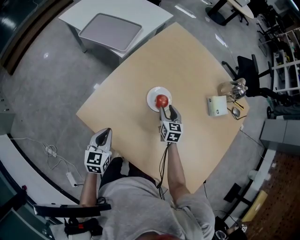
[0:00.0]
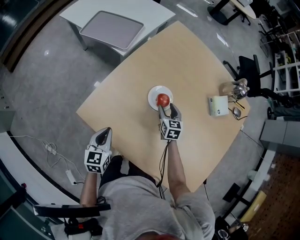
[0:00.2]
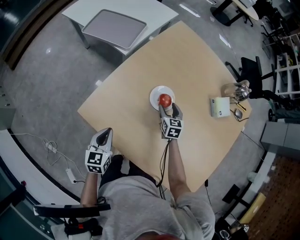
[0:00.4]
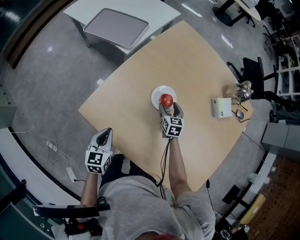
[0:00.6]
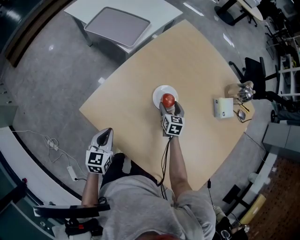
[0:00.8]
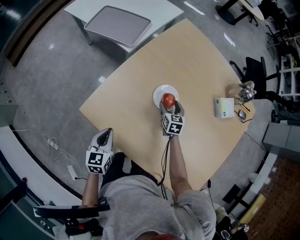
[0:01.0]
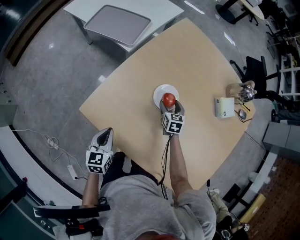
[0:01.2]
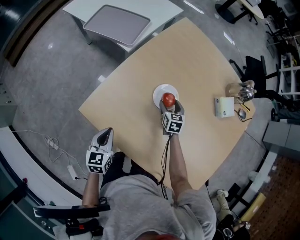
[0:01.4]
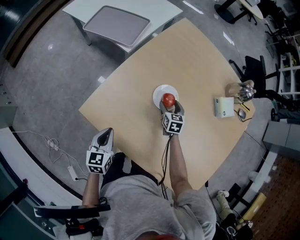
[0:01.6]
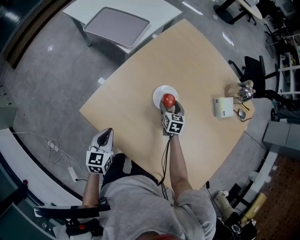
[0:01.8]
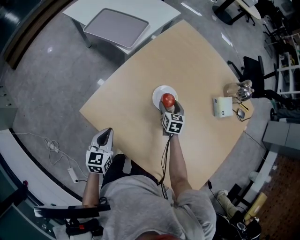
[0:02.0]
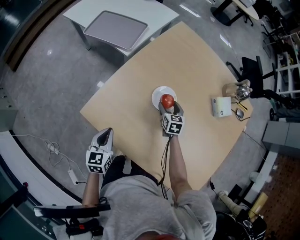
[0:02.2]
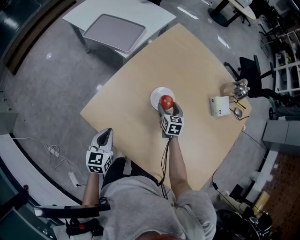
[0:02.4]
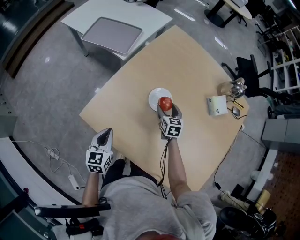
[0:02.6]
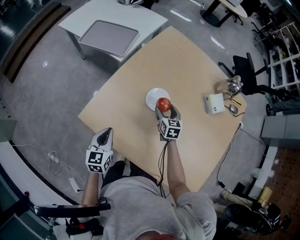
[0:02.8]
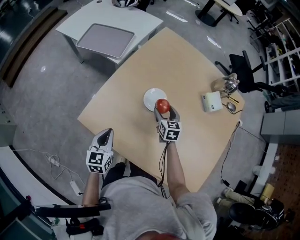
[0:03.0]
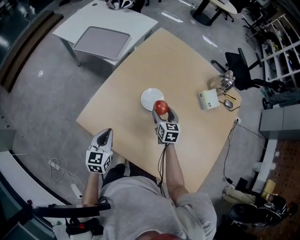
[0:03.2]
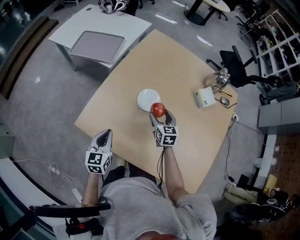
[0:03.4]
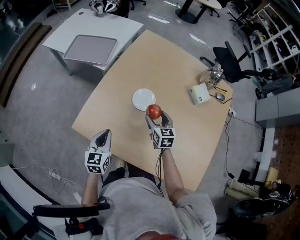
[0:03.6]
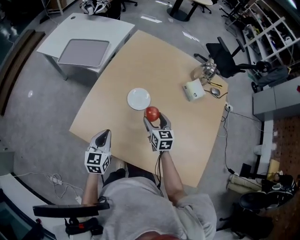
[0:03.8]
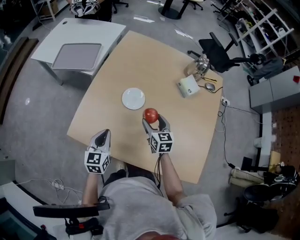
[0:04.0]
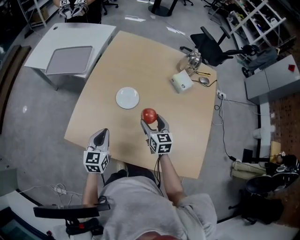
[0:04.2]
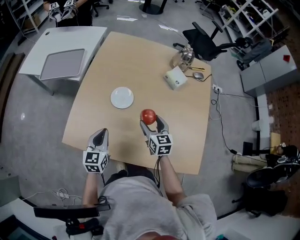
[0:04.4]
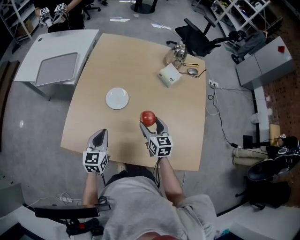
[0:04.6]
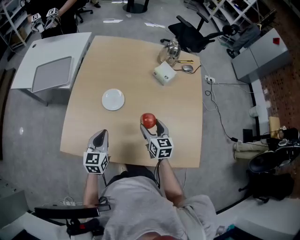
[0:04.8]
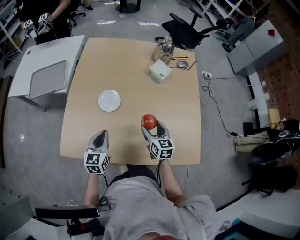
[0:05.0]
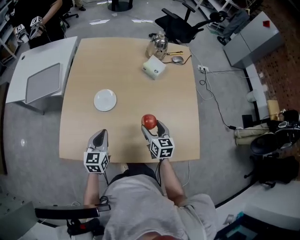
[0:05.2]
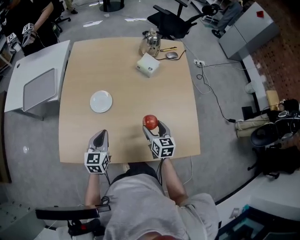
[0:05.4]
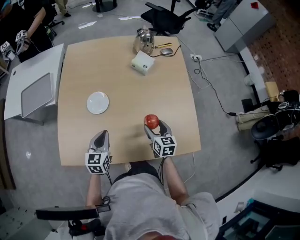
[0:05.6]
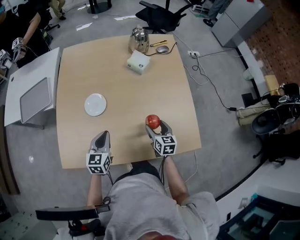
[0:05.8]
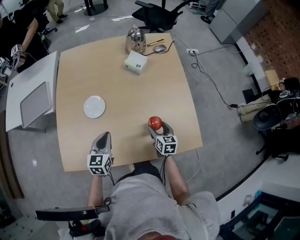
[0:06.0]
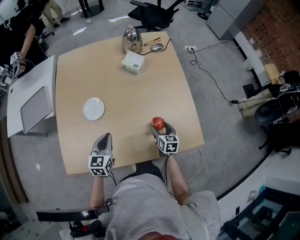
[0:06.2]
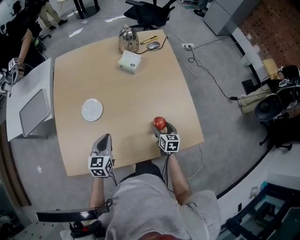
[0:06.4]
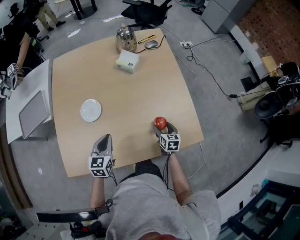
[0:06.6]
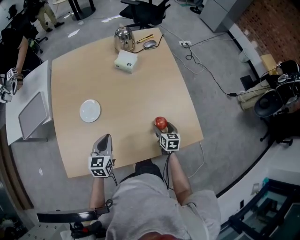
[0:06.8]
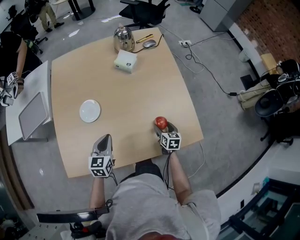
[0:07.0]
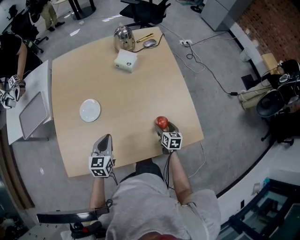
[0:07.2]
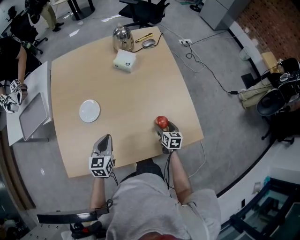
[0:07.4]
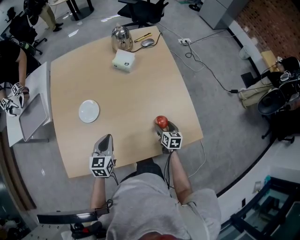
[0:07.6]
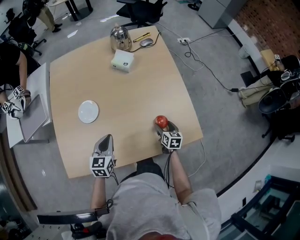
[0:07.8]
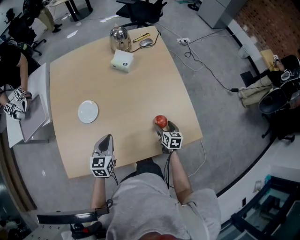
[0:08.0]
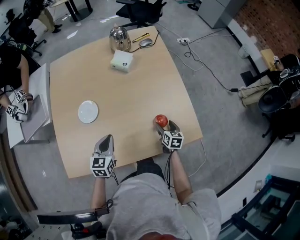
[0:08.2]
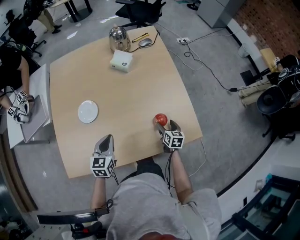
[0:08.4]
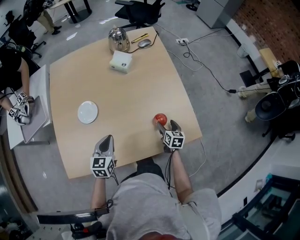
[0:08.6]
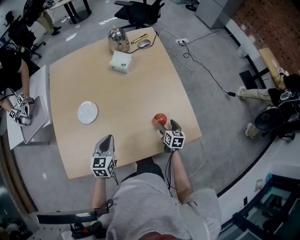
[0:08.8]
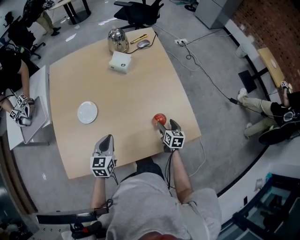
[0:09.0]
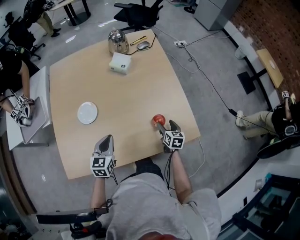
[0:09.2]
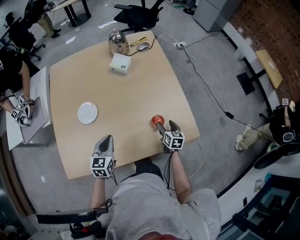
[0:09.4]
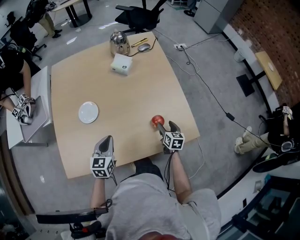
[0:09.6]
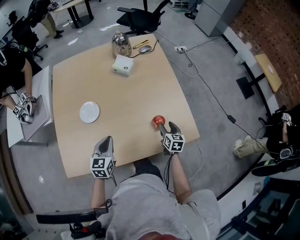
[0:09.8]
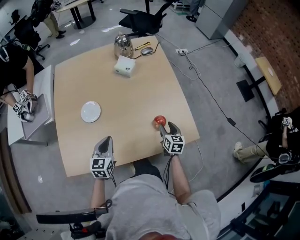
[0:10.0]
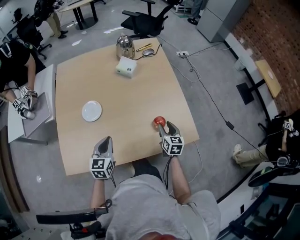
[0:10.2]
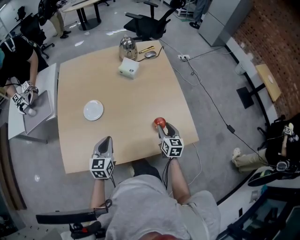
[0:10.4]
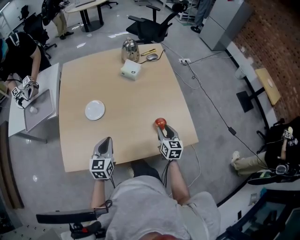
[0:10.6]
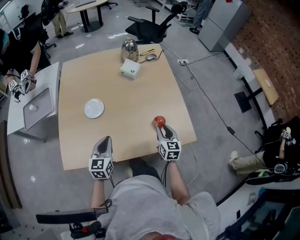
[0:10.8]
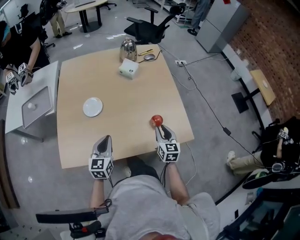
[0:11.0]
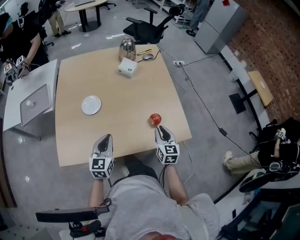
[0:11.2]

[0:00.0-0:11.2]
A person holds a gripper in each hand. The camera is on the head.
0:00.0 to 0:01.6: The right gripper moves about 5 cm, and opens.
0:01.6 to 0:03.2: The right gripper shifts about 10 cm upward and backward. Meanwhile the left gripper ends up roughly 5 cm from where it was.
0:03.2 to 0:04.8: The left gripper moves to the right, approximately 10 cm, and turns by roughly 20 degrees. Meanwhile the right gripper shifts some 20 cm backward and to the right, and rotates some 20 degrees.
0:04.8 to 0:06.4: The right gripper is displaced to the right and downward by roughly 20 cm, and swivels approximately 30 degrees; the left gripper heads to the right, covering some 10 cm.
0:06.4 to 0:08.0: The right gripper changes place by some 5 cm.
0:08.0 to 0:09.6: There are only small adjustments of the grippers.
0:09.6 to 0:11.2: The left gripper goes some 10 cm backward and upward, while the right gripper travels upward and backward by roughly 15 cm, rotates roughly 20 degrees, and closes its fingers.

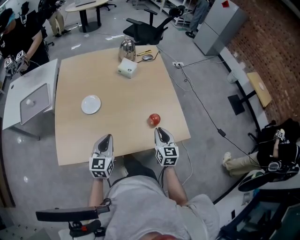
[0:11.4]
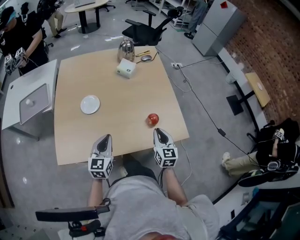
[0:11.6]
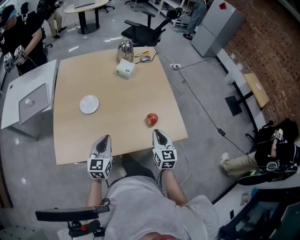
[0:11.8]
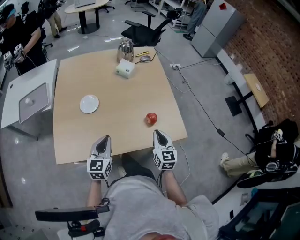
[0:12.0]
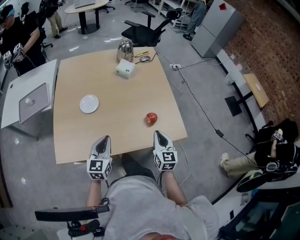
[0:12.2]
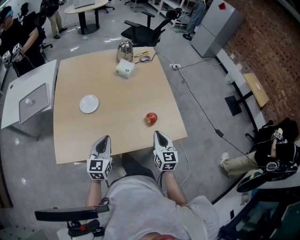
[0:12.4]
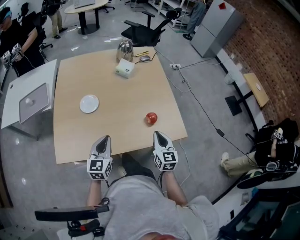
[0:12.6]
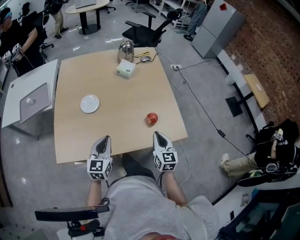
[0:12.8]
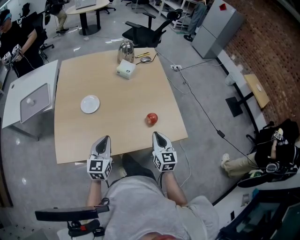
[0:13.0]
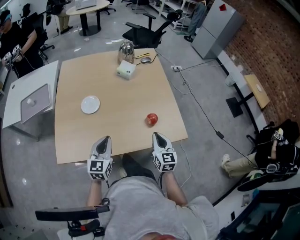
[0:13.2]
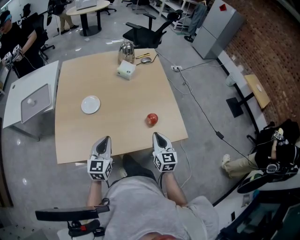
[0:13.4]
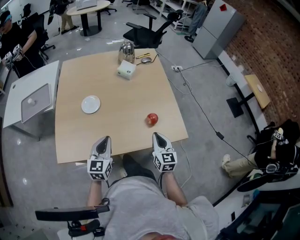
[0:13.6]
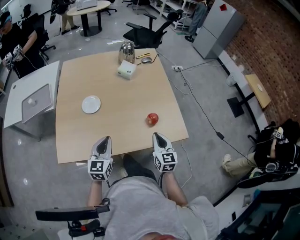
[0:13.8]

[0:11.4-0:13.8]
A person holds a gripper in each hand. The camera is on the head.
0:11.4 to 0:12.6: The grippers make only small movements.
0:12.6 to 0:13.8: Both grippers stay about where they are.

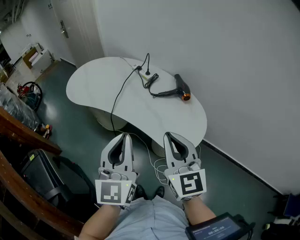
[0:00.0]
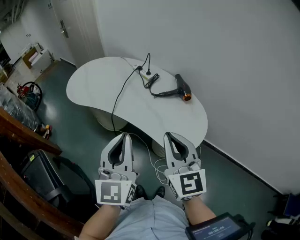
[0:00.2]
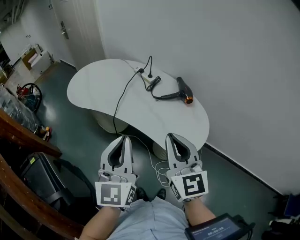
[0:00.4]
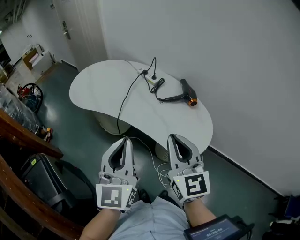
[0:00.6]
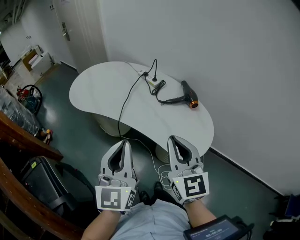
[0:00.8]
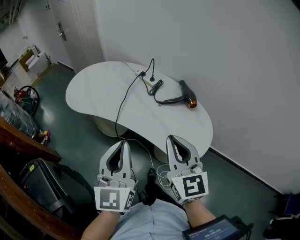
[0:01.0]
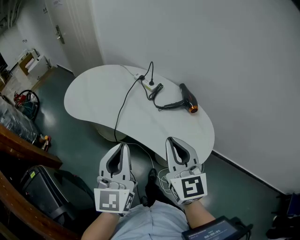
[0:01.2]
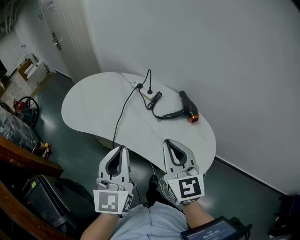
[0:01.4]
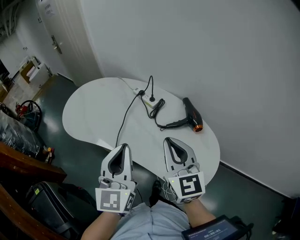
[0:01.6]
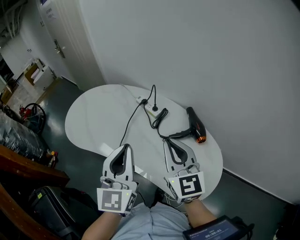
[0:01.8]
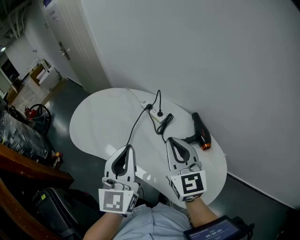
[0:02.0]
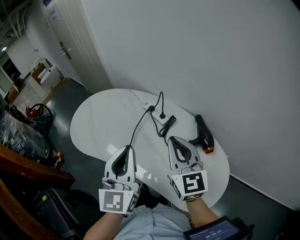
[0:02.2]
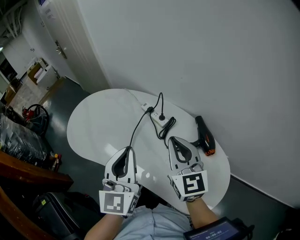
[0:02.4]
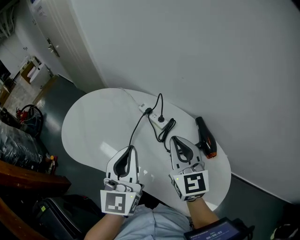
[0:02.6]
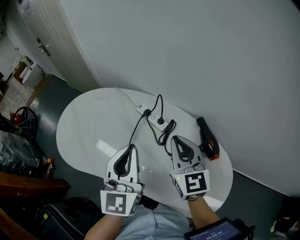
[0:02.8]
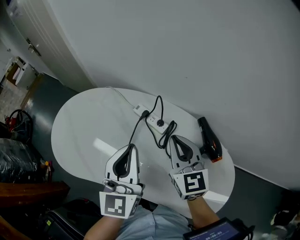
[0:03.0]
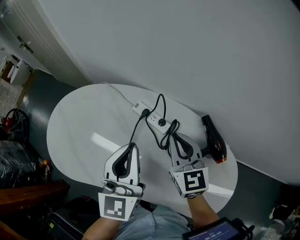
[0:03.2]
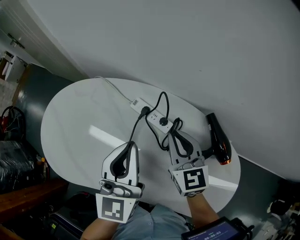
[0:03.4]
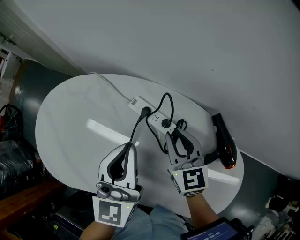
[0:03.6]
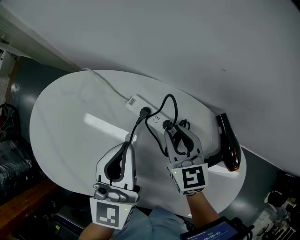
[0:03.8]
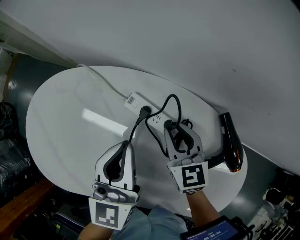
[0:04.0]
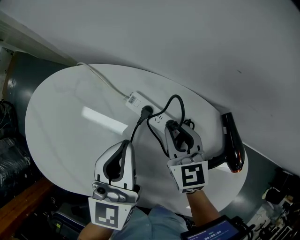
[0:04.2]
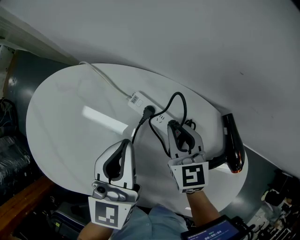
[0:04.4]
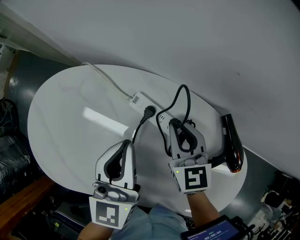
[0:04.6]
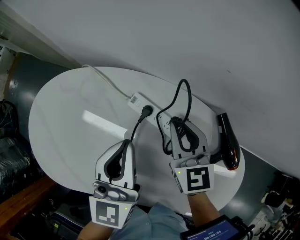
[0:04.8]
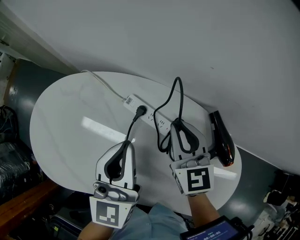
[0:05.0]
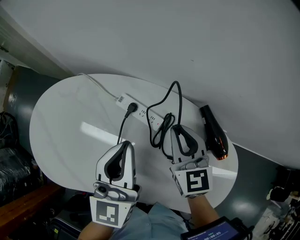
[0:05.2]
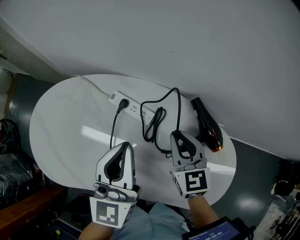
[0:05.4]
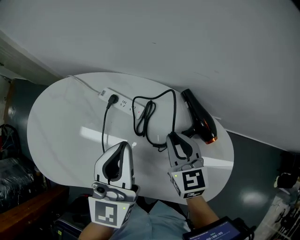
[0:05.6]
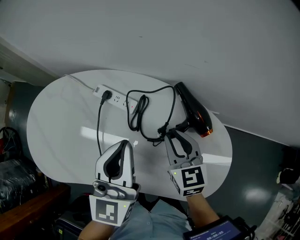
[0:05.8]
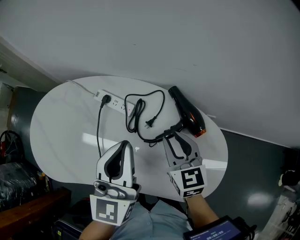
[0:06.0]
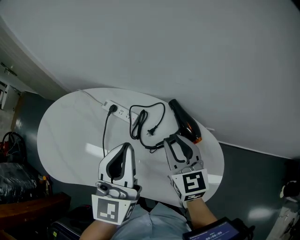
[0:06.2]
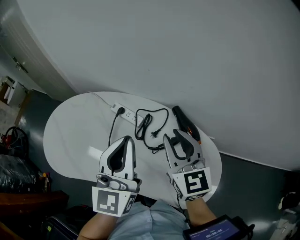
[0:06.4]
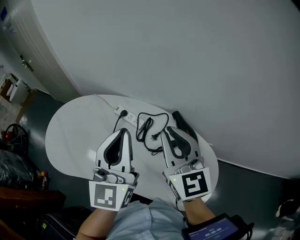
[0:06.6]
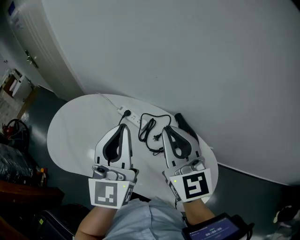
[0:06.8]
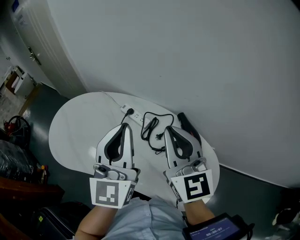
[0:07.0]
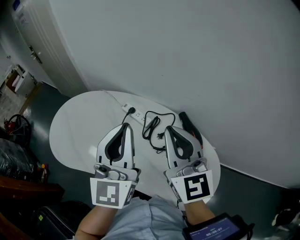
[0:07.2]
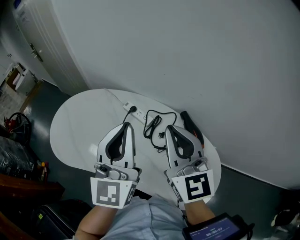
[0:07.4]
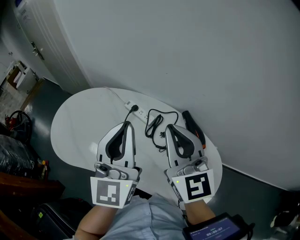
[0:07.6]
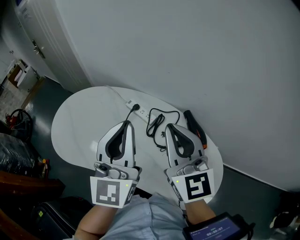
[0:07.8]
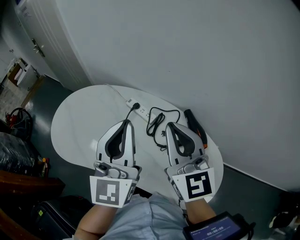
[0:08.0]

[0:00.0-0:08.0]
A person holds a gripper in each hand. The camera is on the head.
0:00.0 to 0:01.6: Both grippers move forward, approximately 15 cm.
0:01.6 to 0:03.2: Both grippers travel together forward, some 25 cm.
0:03.2 to 0:04.8: The grippers both shift downward and forward by approximately 10 cm.
0:04.8 to 0:06.4: The left gripper goes approximately 20 cm upward, backward and to the right, and swivels about 20 degrees; the right gripper is displaced backward, upward and to the right by about 25 cm.
0:06.4 to 0:08.0: The right gripper moves upward and to the left, about 10 cm, and closes. The left gripper is displaced to the left by some 5 cm.

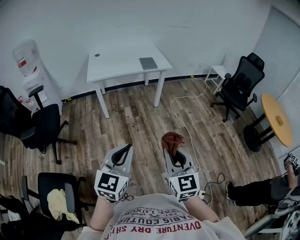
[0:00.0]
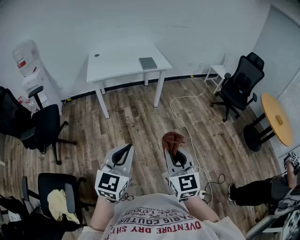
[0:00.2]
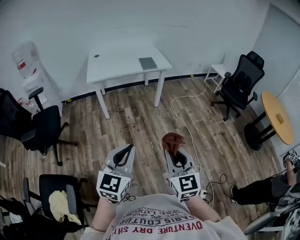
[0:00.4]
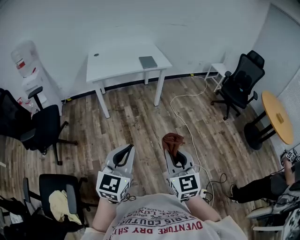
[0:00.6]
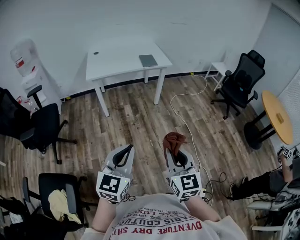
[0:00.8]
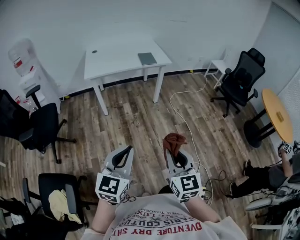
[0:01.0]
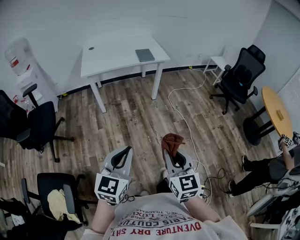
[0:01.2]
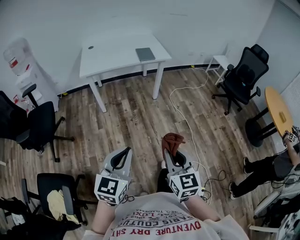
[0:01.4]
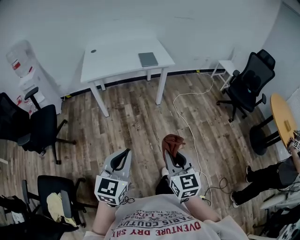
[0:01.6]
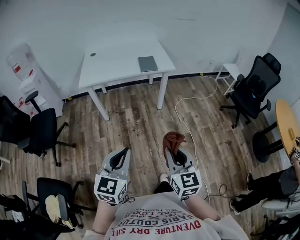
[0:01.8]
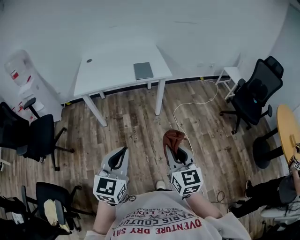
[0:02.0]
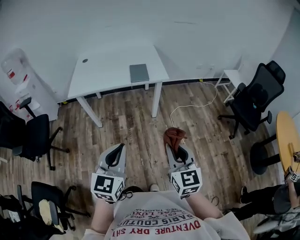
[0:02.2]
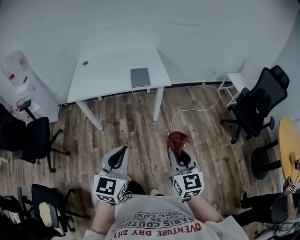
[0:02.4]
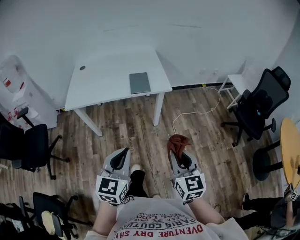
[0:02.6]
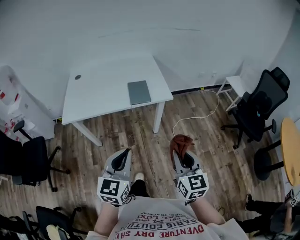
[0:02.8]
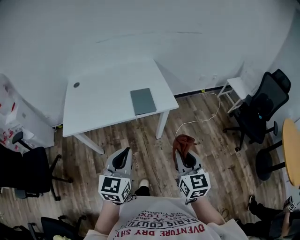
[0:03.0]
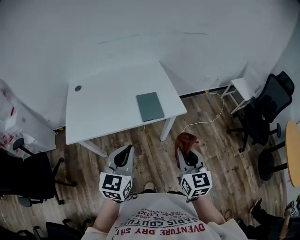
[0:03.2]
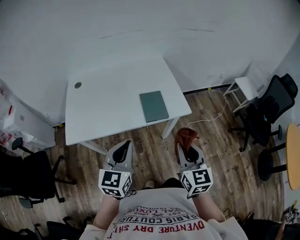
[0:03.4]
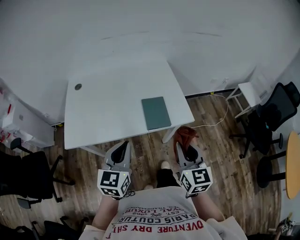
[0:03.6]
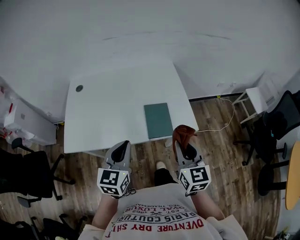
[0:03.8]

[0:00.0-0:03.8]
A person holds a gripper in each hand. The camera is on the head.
0:00.0 to 0:01.2: There are only small adjustments of the grippers.
0:01.2 to 0:02.6: Both grippers are carried forward, approximately 50 cm.
0:02.6 to 0:03.8: The pair of grippers is taken forward, some 40 cm.
